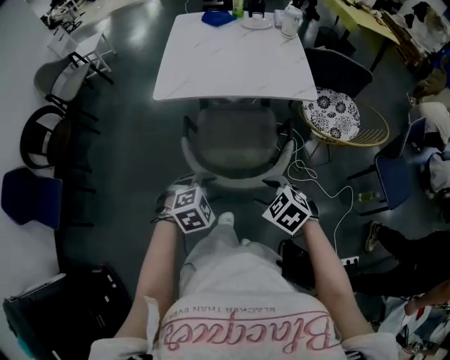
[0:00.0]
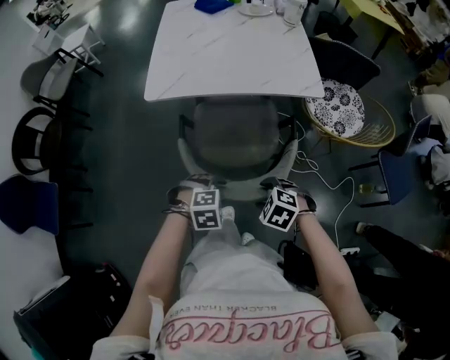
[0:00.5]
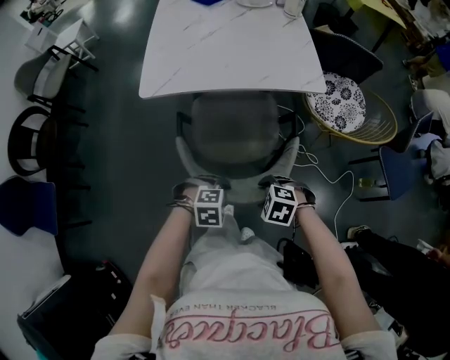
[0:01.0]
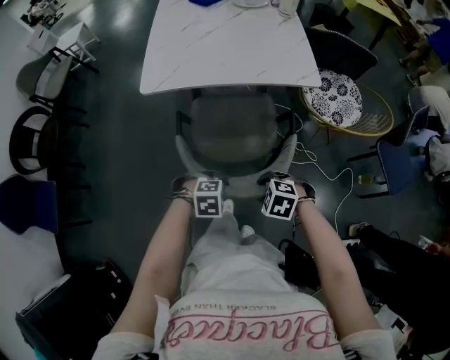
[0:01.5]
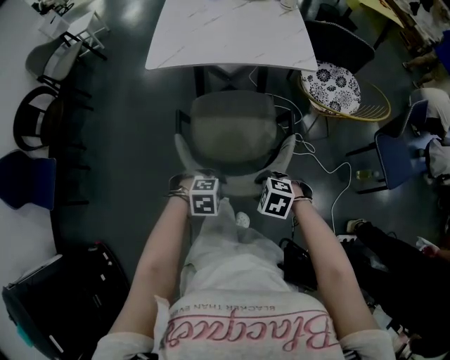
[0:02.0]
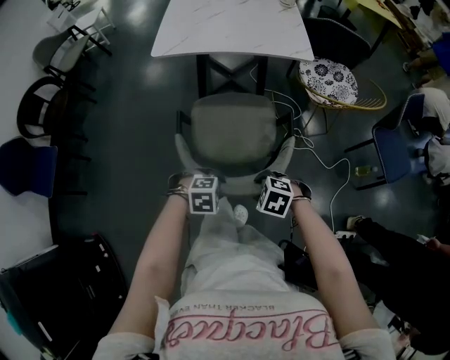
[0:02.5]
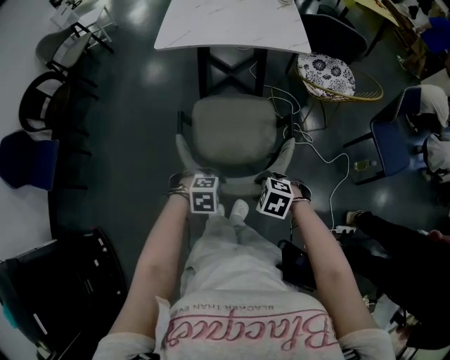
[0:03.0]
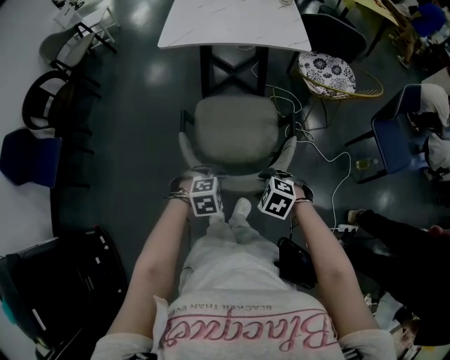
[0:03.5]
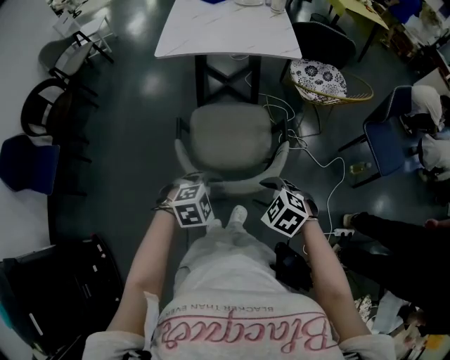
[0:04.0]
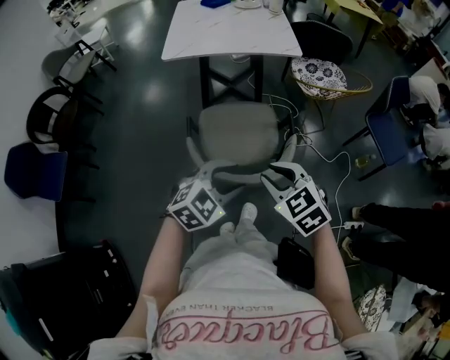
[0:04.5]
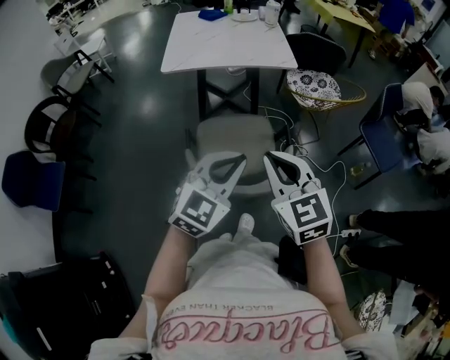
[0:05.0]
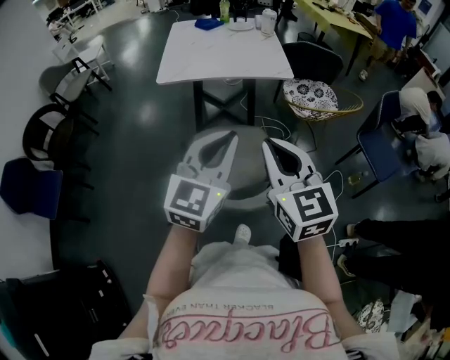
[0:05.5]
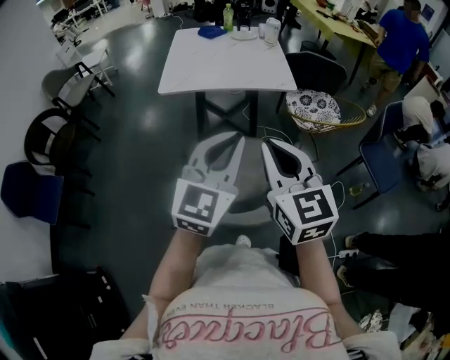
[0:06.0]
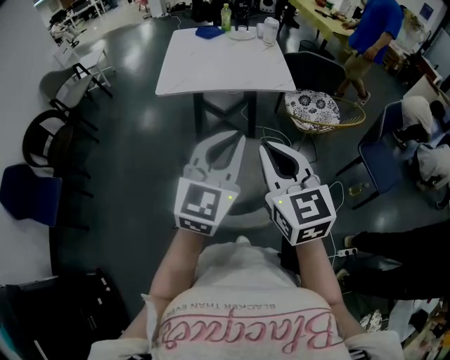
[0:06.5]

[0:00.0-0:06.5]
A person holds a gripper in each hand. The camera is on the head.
0:00.0 to 0:02.0: The left gripper changes place by roughly 15 cm, and swivels approximately 20 degrees. The right gripper shifts about 10 cm downward, and changes its angle by some 20 degrees.
0:02.0 to 0:04.5: Both grippers travel together upward, about 20 cm. The right gripper swivels approximately 40 degrees, while the left gripper tips its fingers upward by about 30 degrees.
0:04.5 to 0:06.5: Both grippers move upward and forward, some 25 cm. The left gripper points its fingers approximately 30 degrees further upward, and closes up; the right gripper changes its angle by some 30 degrees, and closes its fingers.

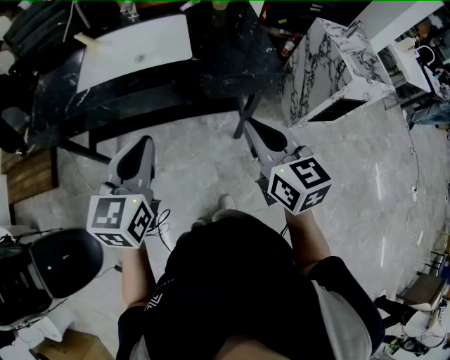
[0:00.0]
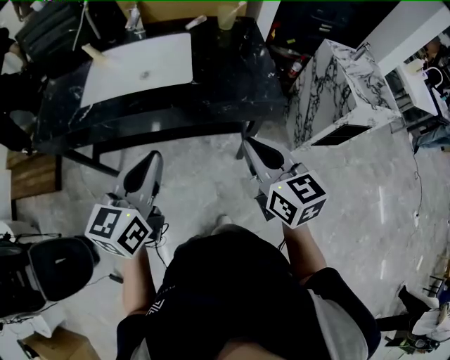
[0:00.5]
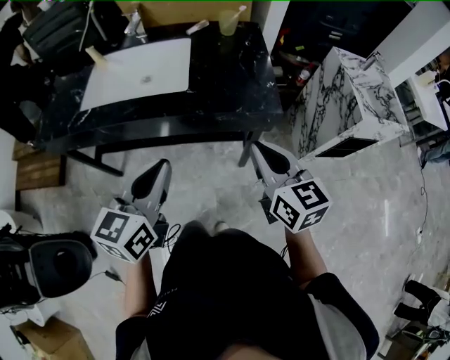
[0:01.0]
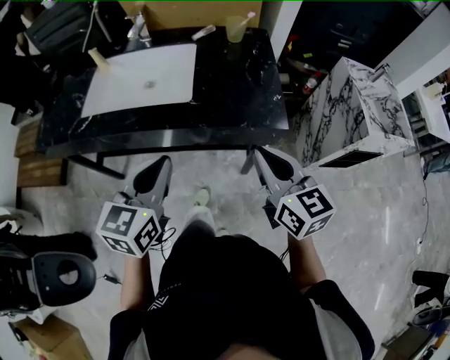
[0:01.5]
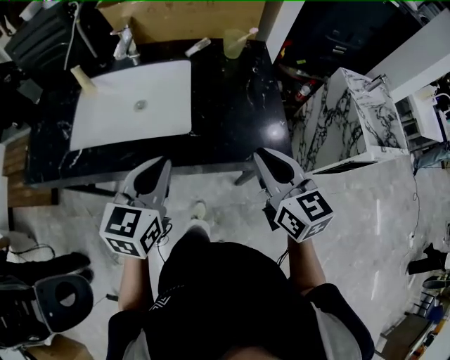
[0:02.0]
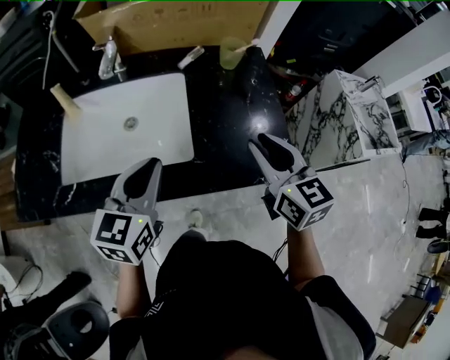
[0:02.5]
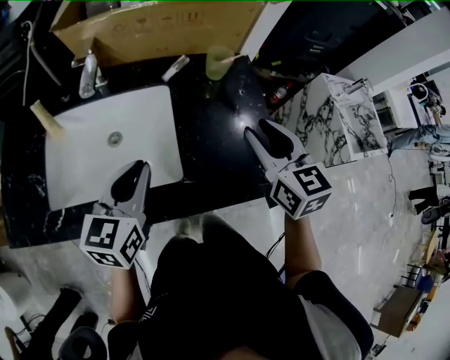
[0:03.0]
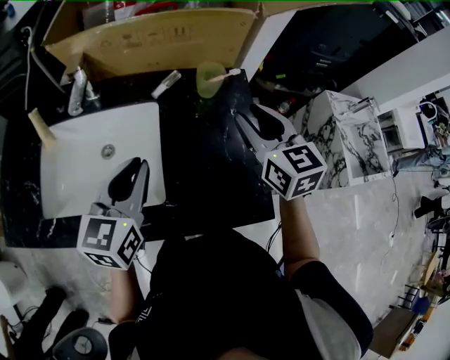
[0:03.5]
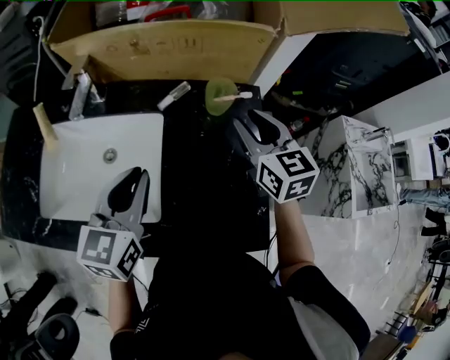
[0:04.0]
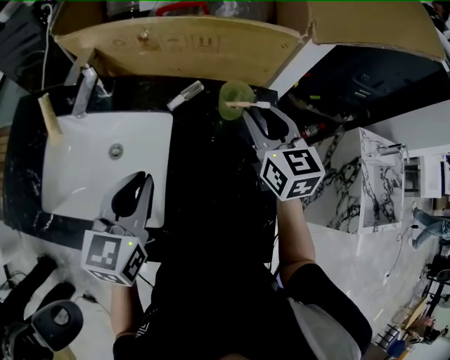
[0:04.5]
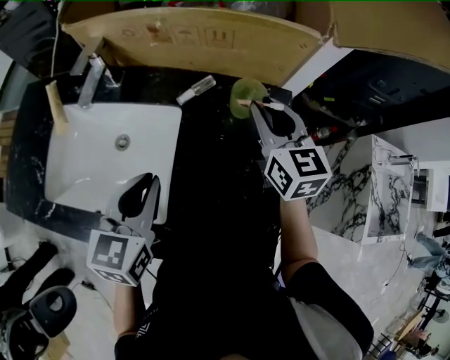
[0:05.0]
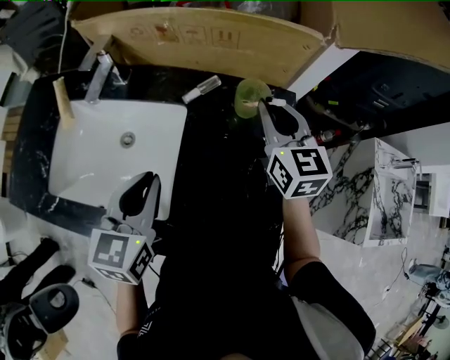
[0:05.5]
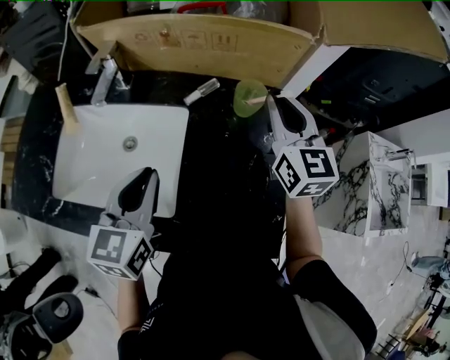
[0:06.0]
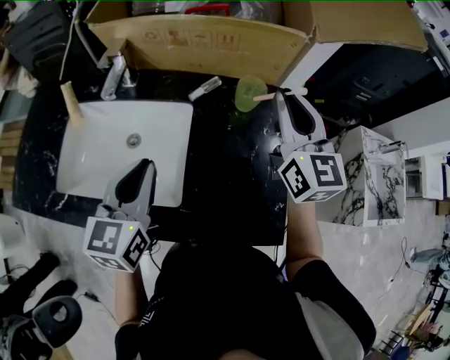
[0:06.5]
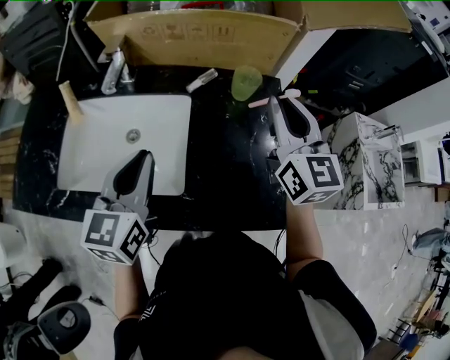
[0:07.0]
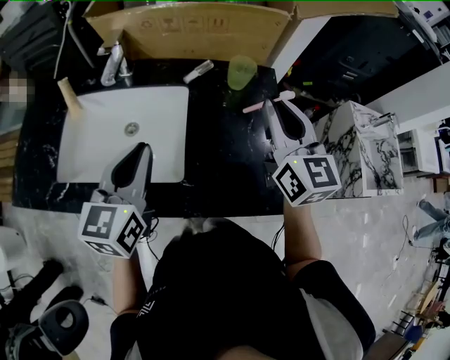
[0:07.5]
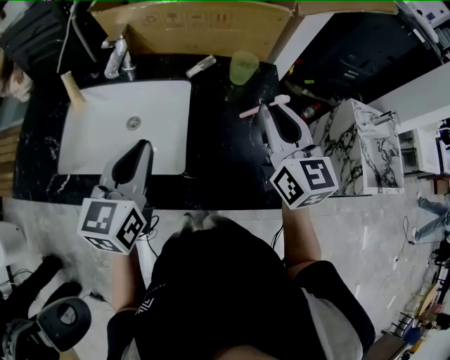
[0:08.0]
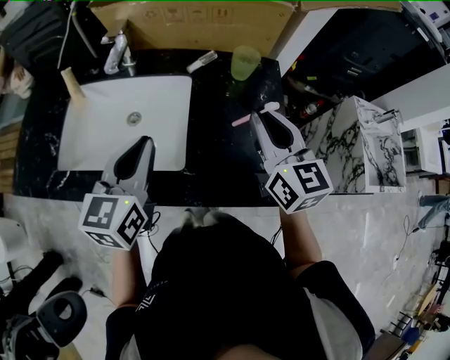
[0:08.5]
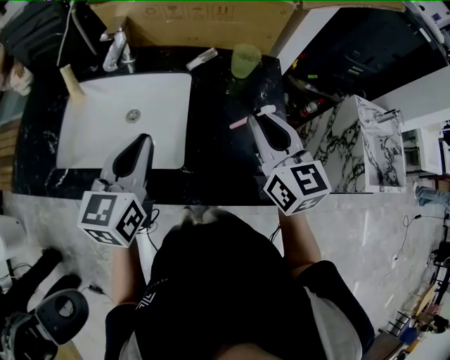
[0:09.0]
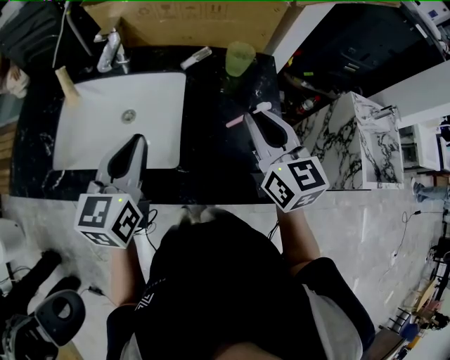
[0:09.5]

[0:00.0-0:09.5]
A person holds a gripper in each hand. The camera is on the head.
0:00.0 to 0:02.0: Both grippers move forward, some 20 cm.
0:02.0 to 0:04.0: The left gripper is displaced forward by about 20 cm, while the right gripper heads forward, covering roughly 30 cm, and opens up.
0:04.0 to 0:05.5: The right gripper shifts some 5 cm forward, and closes up.
0:05.5 to 0:07.5: The left gripper shifts by some 10 cm. The right gripper goes roughly 15 cm backward and upward.
0:07.5 to 0:09.5: The right gripper moves downward, about 5 cm.

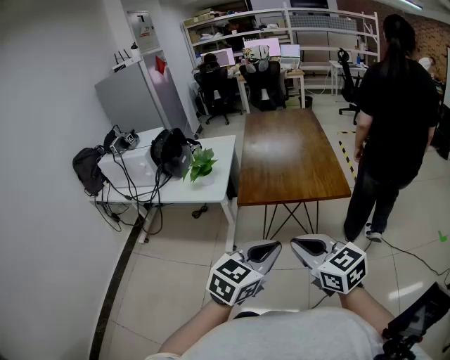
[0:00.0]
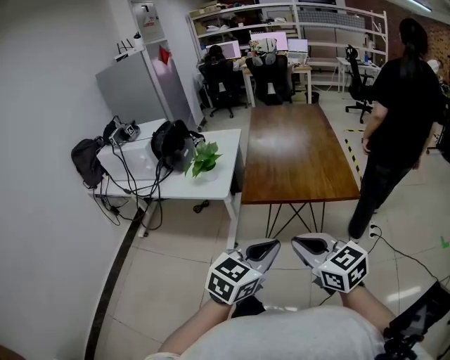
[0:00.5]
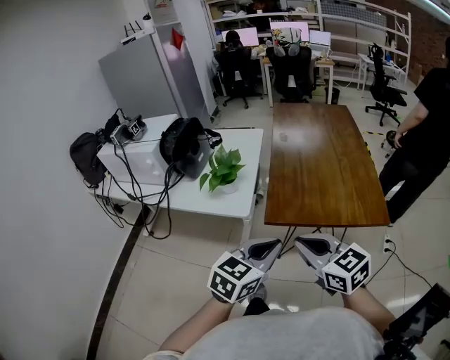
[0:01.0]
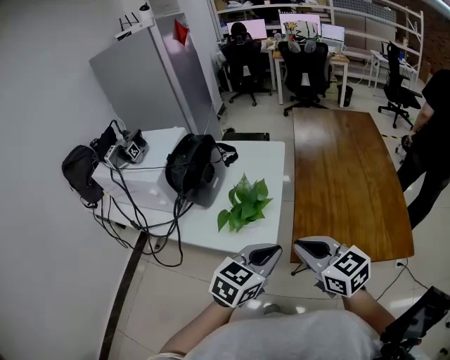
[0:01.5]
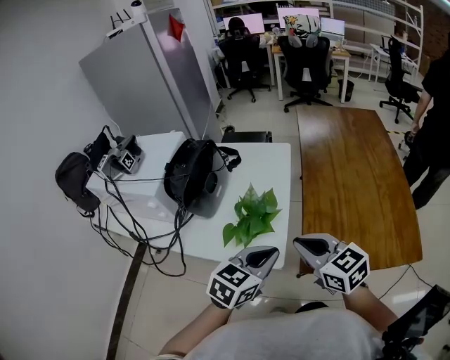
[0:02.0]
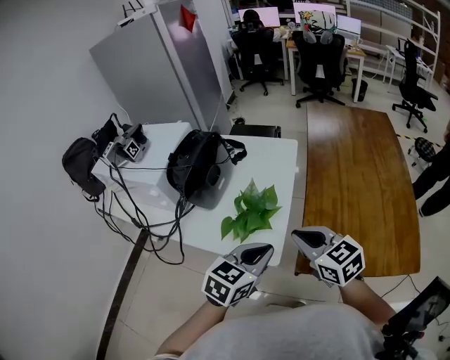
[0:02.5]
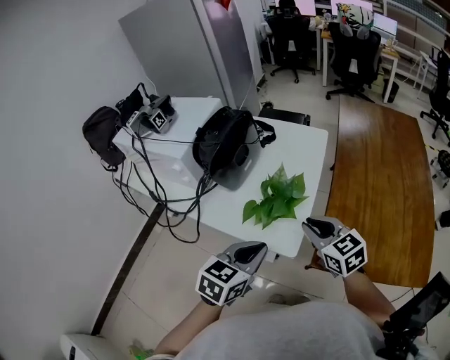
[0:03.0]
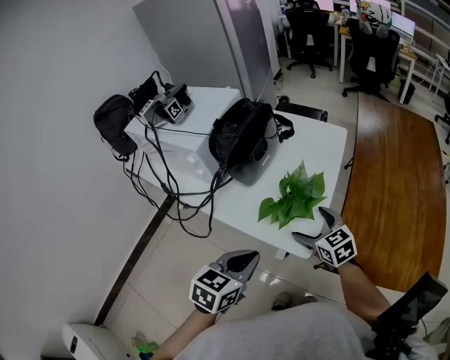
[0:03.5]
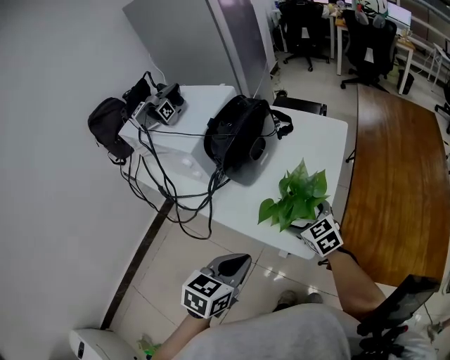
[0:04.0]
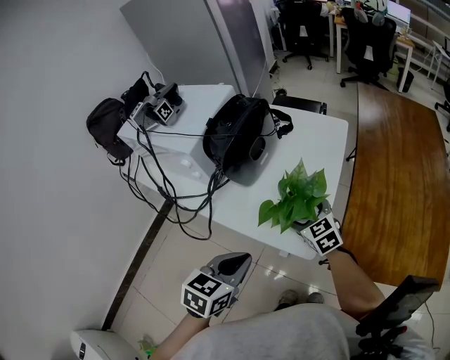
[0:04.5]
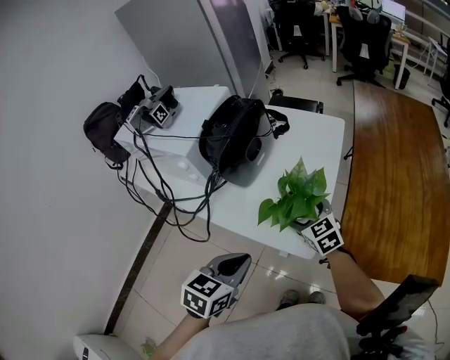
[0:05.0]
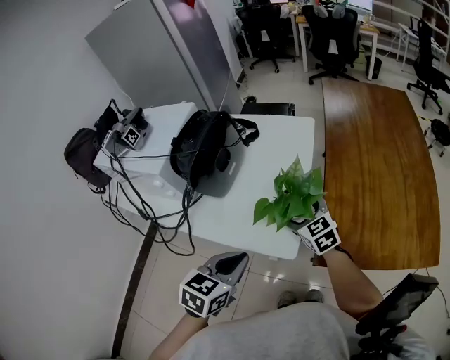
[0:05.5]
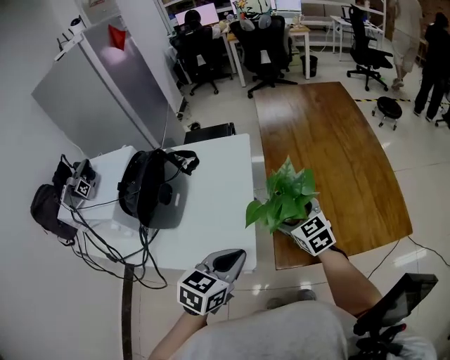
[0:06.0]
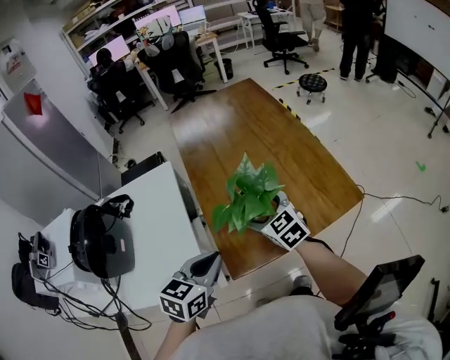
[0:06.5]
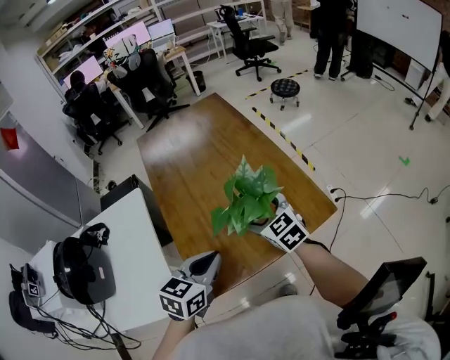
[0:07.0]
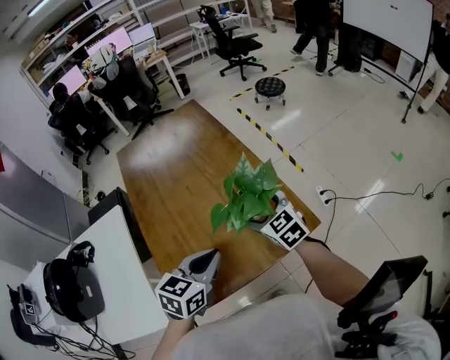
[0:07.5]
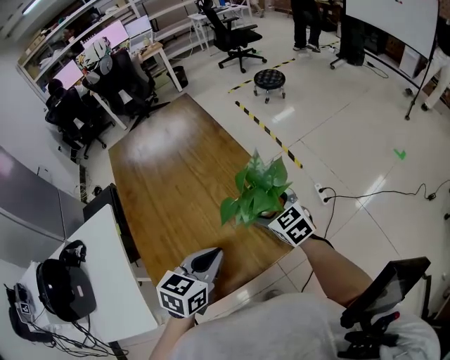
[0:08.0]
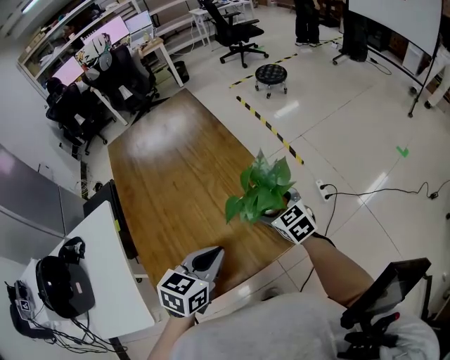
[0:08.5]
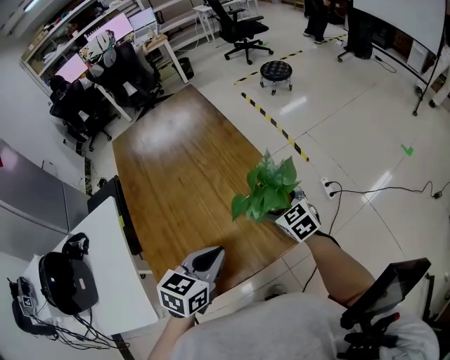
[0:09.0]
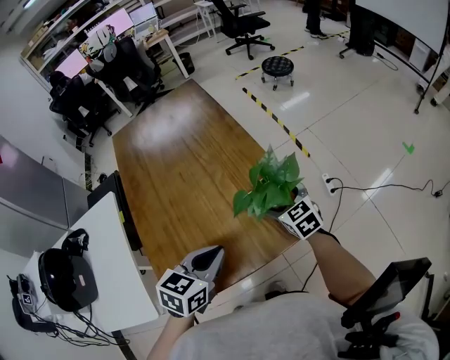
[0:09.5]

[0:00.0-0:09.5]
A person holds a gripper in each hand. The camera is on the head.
0:00.0 to 0:02.0: Both grippers are carried forward and to the left, about 50 cm.
0:02.0 to 0:04.0: The right gripper heads downward, forward and to the left, covering some 25 cm, and opens its fingers; the left gripper travels to the left by about 15 cm, and rotates approximately 30 degrees.
0:04.0 to 0:05.5: The grippers both shift to the right by some 5 cm.
0:05.5 to 0:07.5: Both grippers are carried some 50 cm. The right gripper swivels some 40 degrees, while the left gripper rotates about 40 degrees.
0:07.5 to 0:09.5: The right gripper travels downward and to the right by some 10 cm. The left gripper shifts by approximately 5 cm.

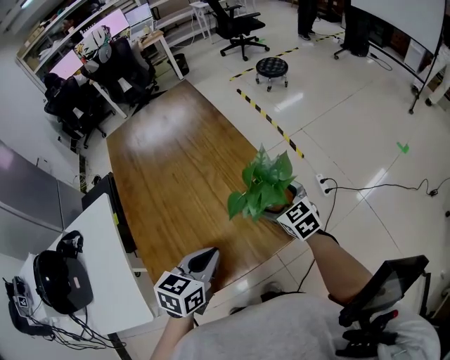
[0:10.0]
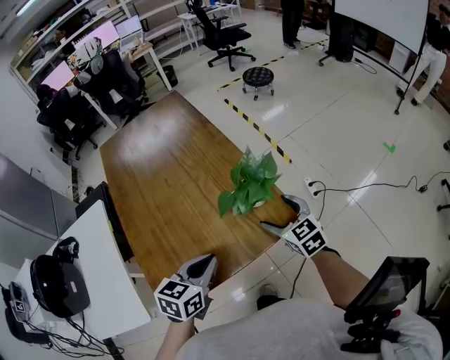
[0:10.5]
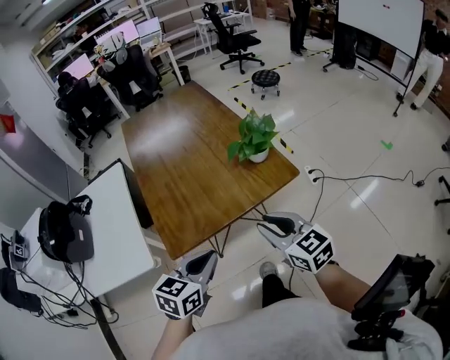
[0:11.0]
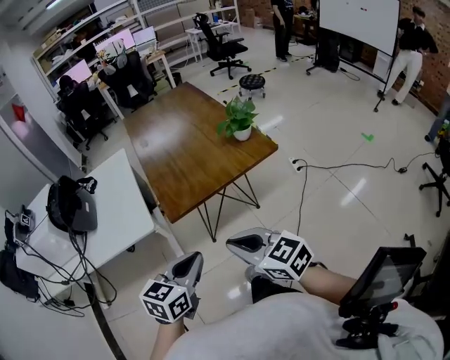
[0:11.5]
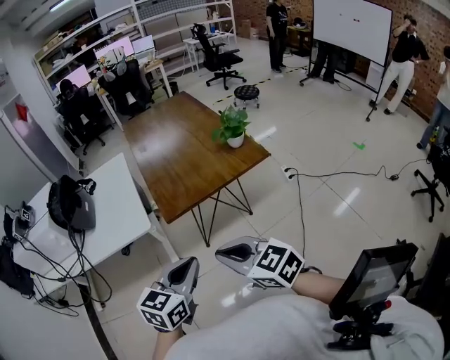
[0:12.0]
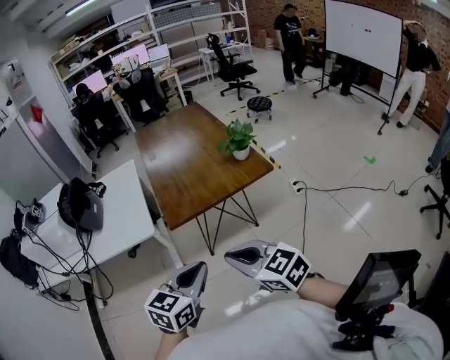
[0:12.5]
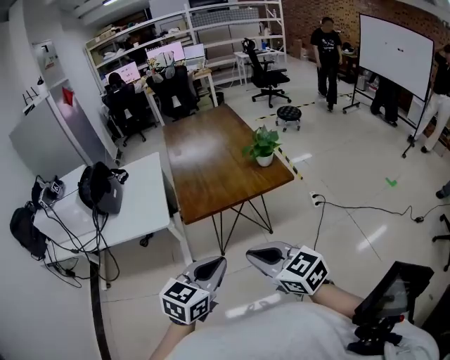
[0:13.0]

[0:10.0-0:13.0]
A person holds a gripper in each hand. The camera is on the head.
0:10.0 to 0:11.5: The two grippers travel together, backward, approximately 50 cm. The right gripper rotates about 30 degrees, and closes.
0:11.5 to 0:13.0: Both grippers move backward, to the right and upward, some 15 cm.
